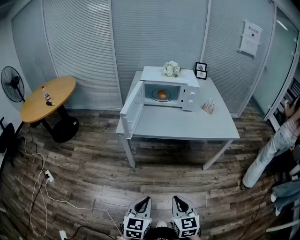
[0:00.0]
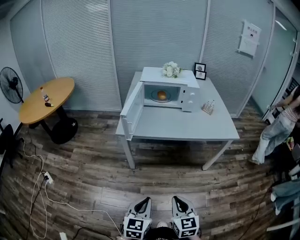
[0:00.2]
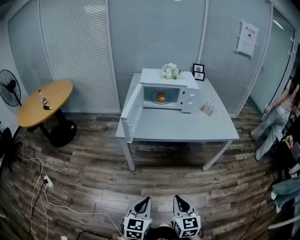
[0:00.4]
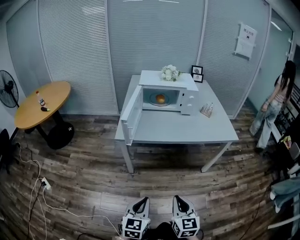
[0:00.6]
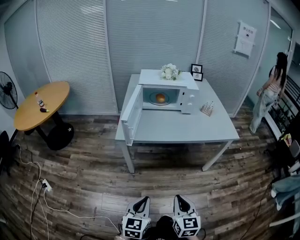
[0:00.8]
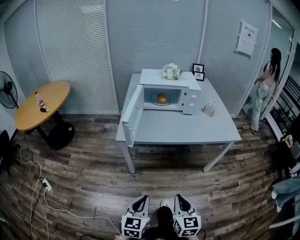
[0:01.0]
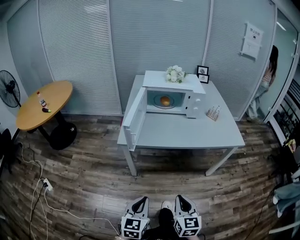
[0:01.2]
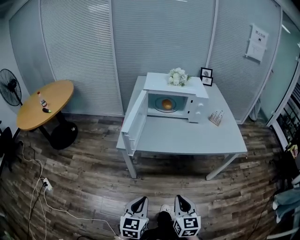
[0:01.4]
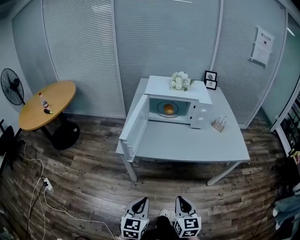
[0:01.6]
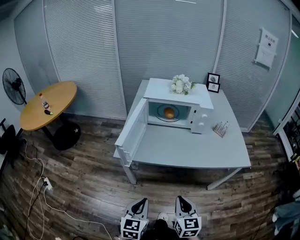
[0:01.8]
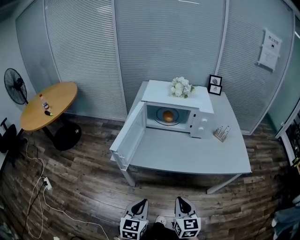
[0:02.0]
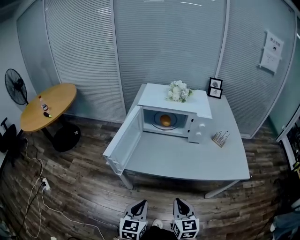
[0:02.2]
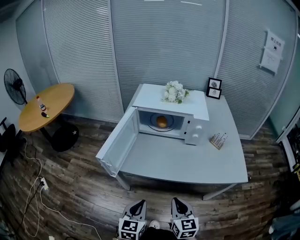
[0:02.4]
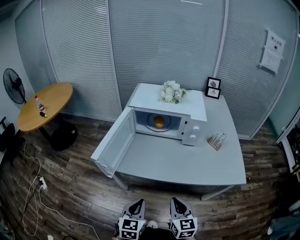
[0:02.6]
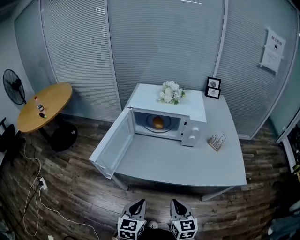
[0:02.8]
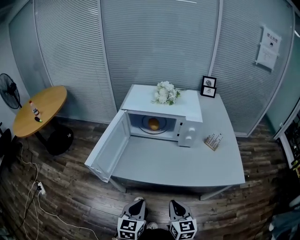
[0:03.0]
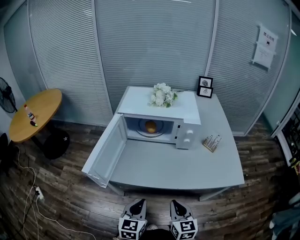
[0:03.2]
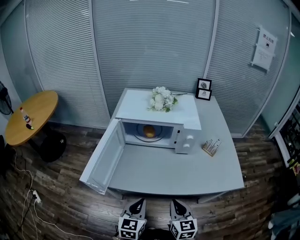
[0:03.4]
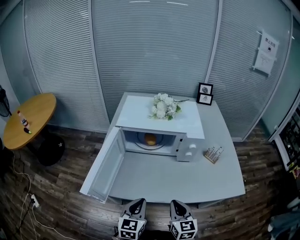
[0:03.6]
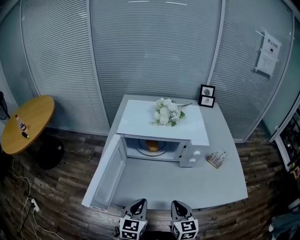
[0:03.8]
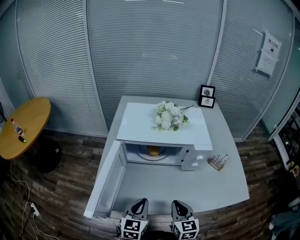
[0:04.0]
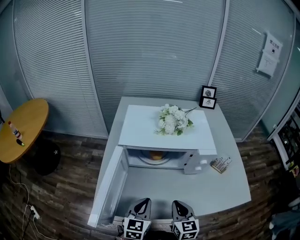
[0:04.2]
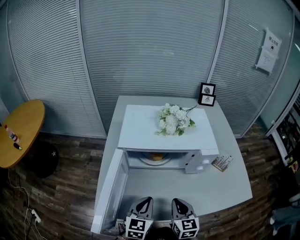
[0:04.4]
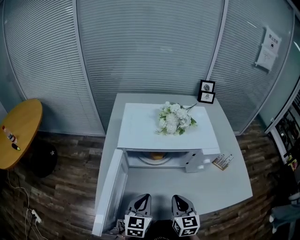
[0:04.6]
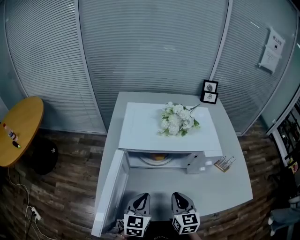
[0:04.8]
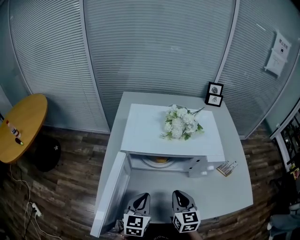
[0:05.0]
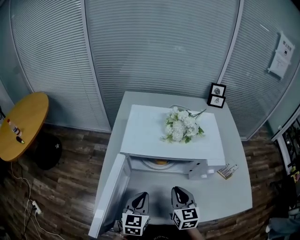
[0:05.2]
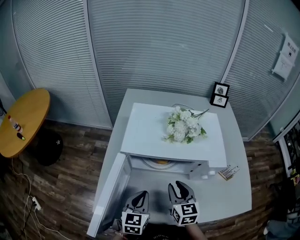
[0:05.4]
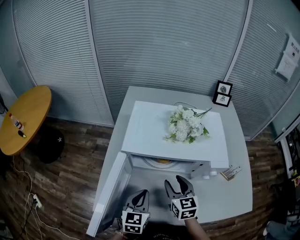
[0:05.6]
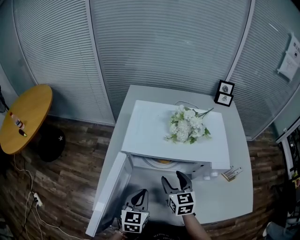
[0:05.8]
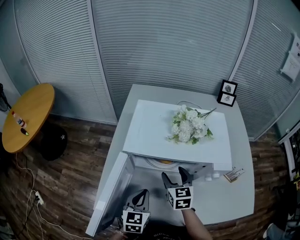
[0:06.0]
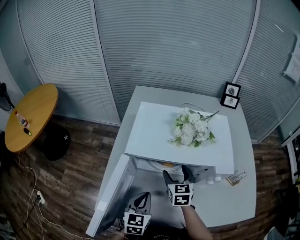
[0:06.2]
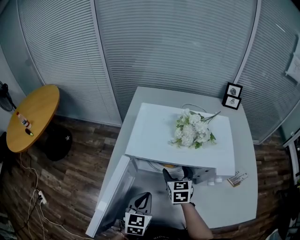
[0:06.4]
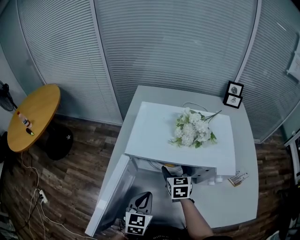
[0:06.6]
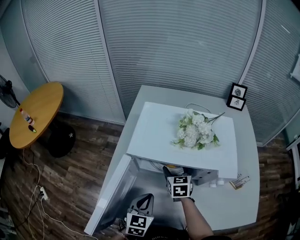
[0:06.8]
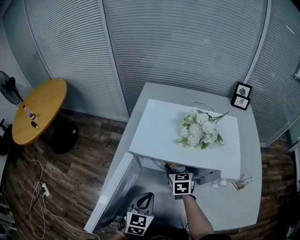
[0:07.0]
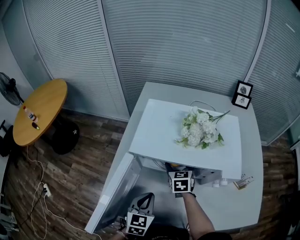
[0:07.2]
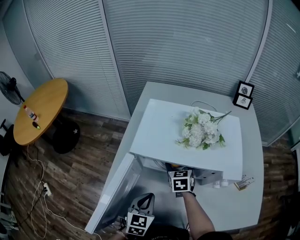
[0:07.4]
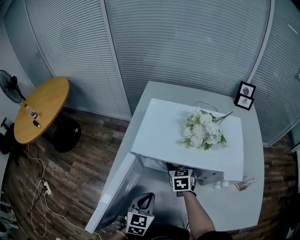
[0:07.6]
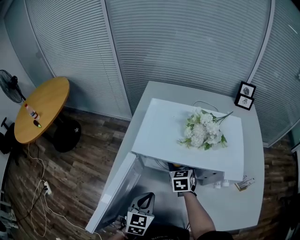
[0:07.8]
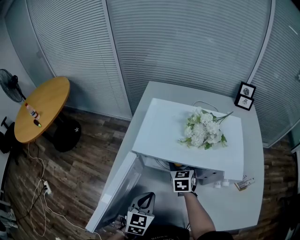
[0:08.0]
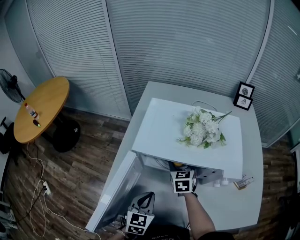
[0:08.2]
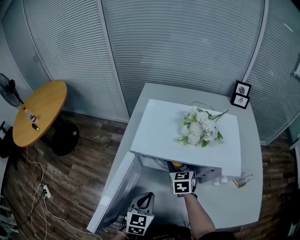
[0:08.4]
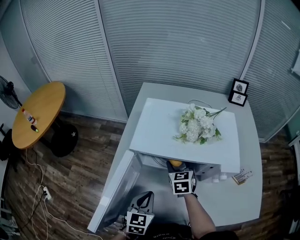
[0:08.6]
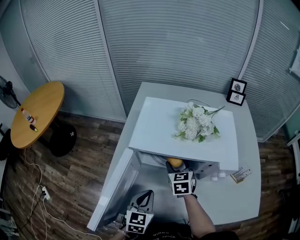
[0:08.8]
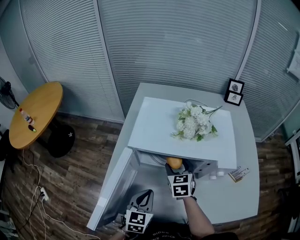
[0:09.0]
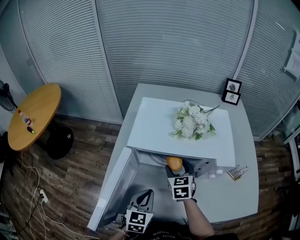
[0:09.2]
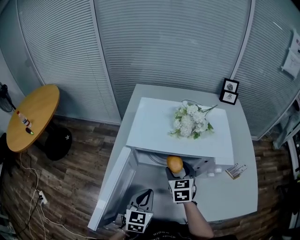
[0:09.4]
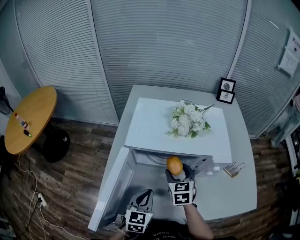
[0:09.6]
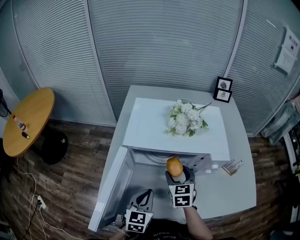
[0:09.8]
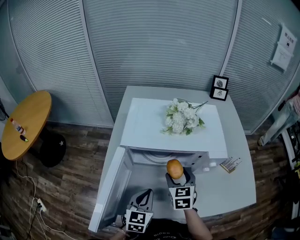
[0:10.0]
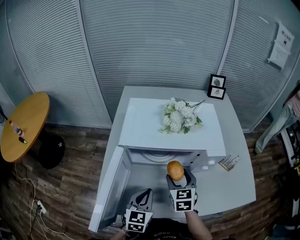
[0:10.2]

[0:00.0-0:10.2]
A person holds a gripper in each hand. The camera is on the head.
0.0 to 1.4 s: The left gripper shifts some 15 cm forward and to the left, while the right gripper goes about 15 cm forward.
1.4 to 3.0 s: The two grippers go roughly 20 cm forward and to the right.
3.0 to 4.4 s: Both grippers travel together forward, roughly 20 cm.
4.4 to 5.8 s: The right gripper goes some 15 cm forward, and opens its fingers. Meanwhile the left gripper travels forward by some 5 cm.
5.8 to 7.2 s: The right gripper goes about 10 cm forward and downward.
7.2 to 8.8 s: The grippers move only a little.
8.8 to 10.2 s: The right gripper moves backward and to the right, roughly 10 cm.

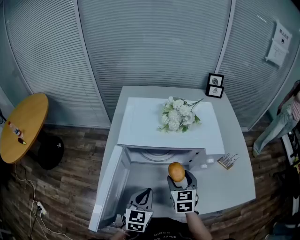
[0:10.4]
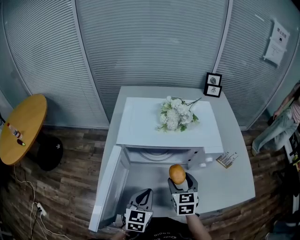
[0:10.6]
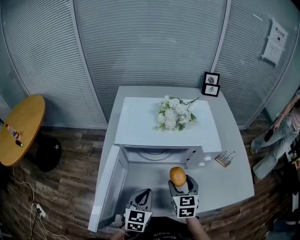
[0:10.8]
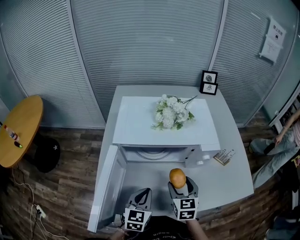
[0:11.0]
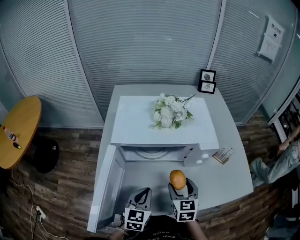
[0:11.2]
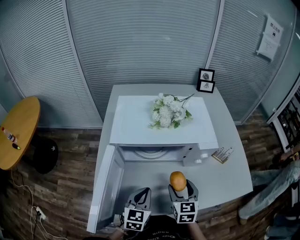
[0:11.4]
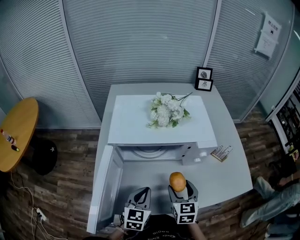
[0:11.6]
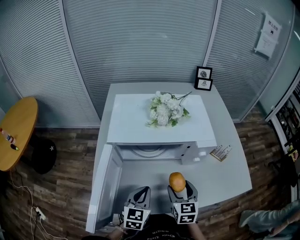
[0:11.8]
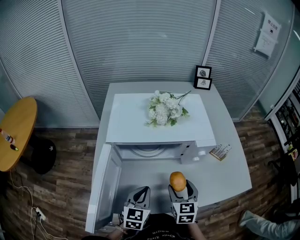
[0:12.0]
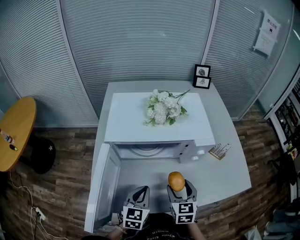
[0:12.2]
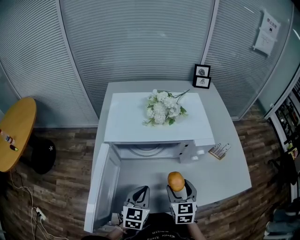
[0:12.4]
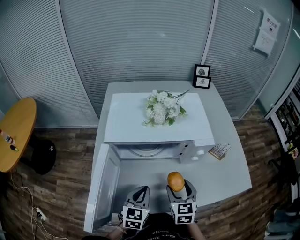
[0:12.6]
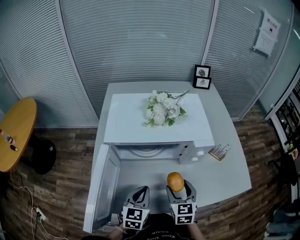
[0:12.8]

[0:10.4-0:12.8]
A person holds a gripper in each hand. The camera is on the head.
10.4 to 11.6 s: The right gripper goes some 5 cm backward.
11.6 to 12.8 s: Both grippers stay about where they are.

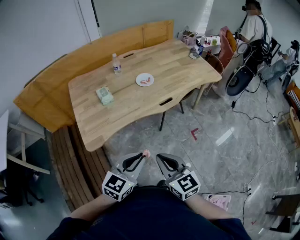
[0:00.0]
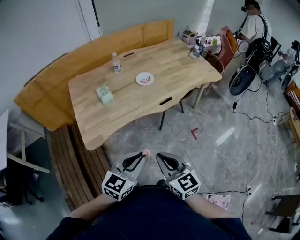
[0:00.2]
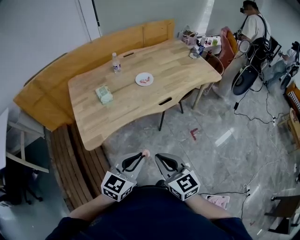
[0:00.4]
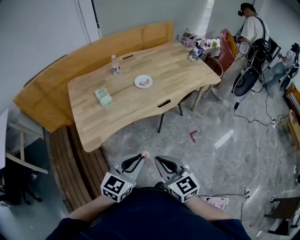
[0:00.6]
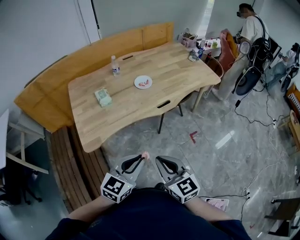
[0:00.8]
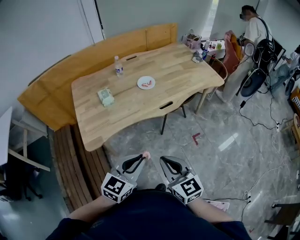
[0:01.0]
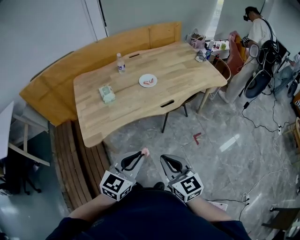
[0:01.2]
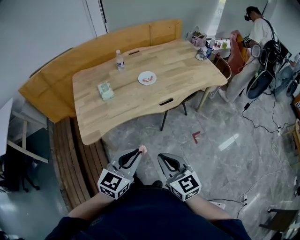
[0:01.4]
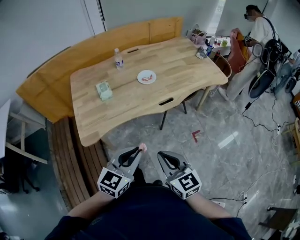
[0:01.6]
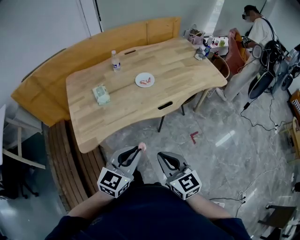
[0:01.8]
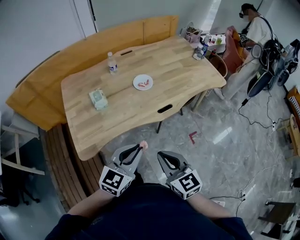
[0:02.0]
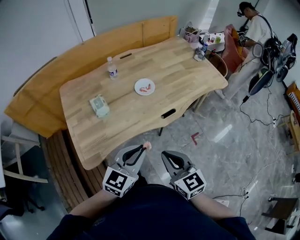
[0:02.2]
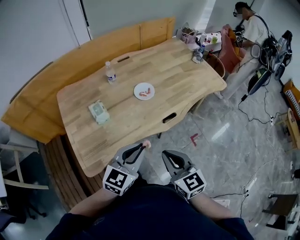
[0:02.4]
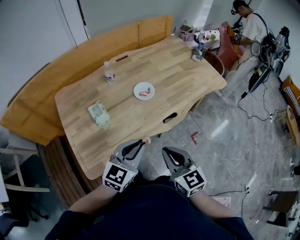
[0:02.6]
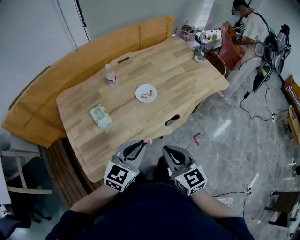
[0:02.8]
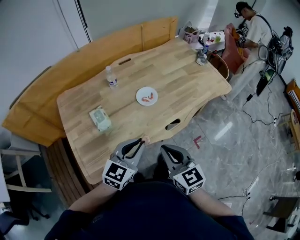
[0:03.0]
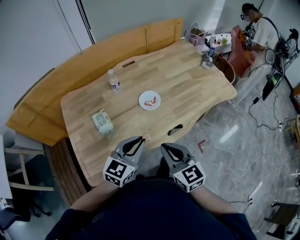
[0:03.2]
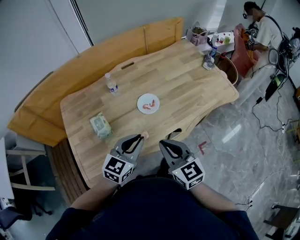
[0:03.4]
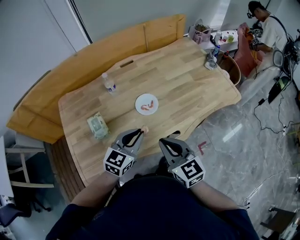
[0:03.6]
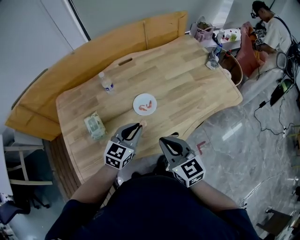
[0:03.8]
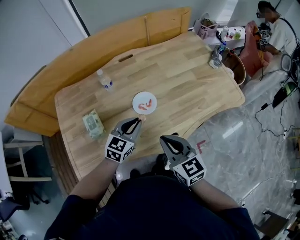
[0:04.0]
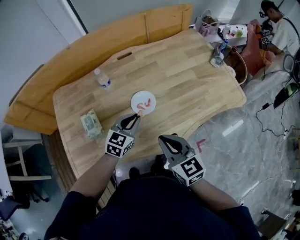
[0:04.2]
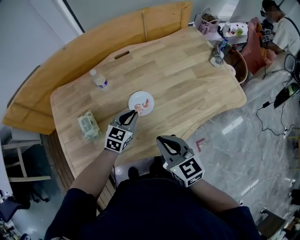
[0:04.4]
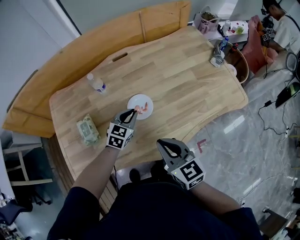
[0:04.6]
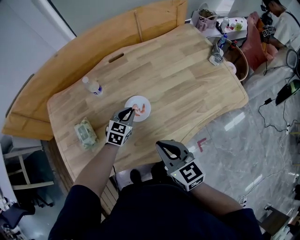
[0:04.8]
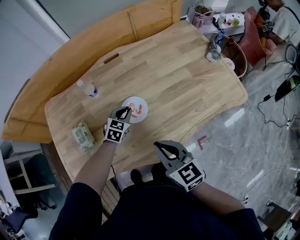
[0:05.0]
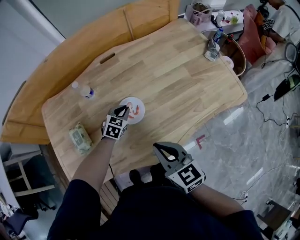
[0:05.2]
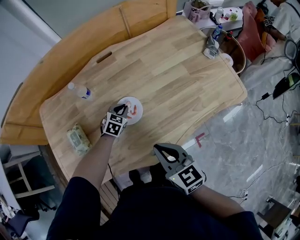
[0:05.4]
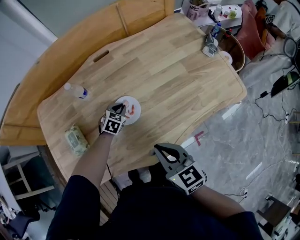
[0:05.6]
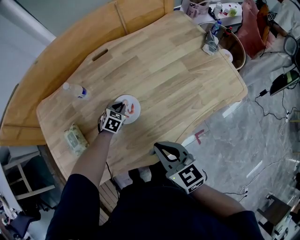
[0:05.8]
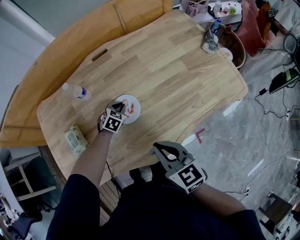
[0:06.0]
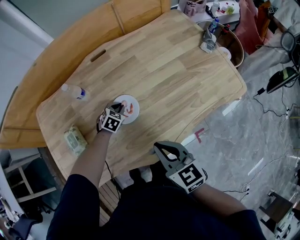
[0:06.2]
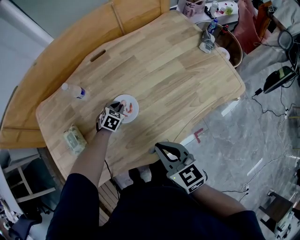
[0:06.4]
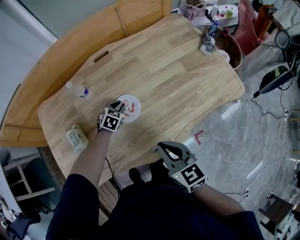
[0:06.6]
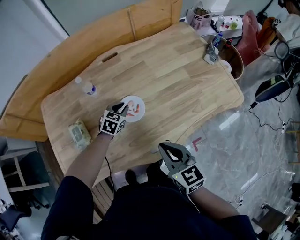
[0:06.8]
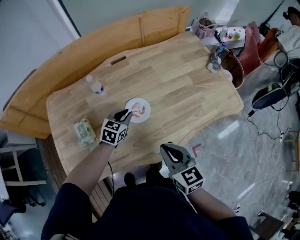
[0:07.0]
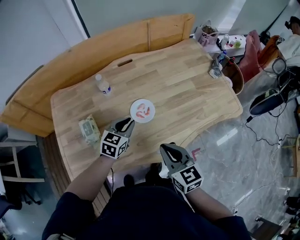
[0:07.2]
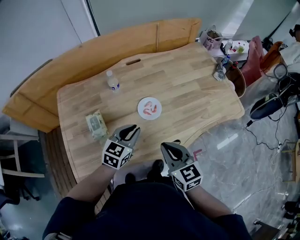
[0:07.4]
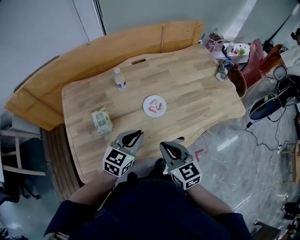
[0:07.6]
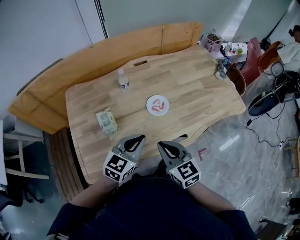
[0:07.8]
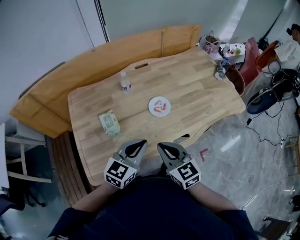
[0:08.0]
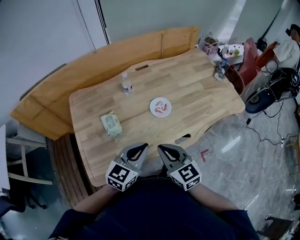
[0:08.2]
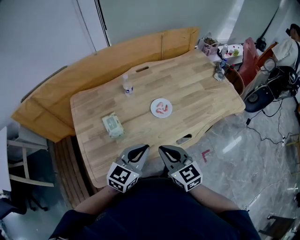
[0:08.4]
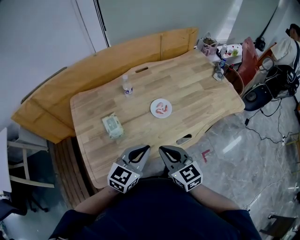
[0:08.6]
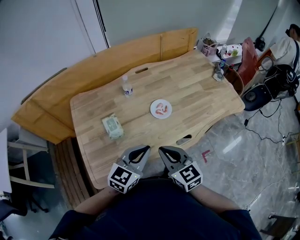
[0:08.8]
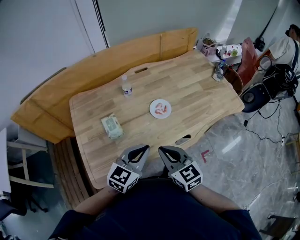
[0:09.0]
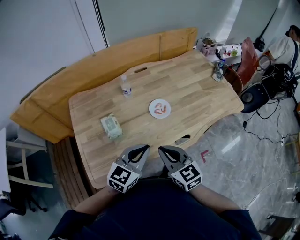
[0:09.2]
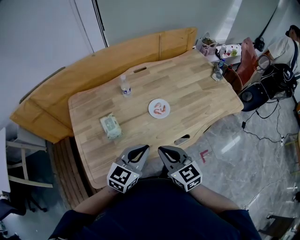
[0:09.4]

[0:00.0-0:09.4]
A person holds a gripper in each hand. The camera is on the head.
0.0 to 1.6 s: The right gripper ends up approximately 5 cm from where it was; the left gripper moves roughly 5 cm.
1.6 to 3.2 s: The grippers both shift forward by some 30 cm.
3.2 to 4.8 s: The left gripper shifts roughly 35 cm forward and downward, and turns by roughly 20 degrees, while the right gripper travels forward and to the right by roughly 20 cm.
4.8 to 6.2 s: The right gripper ends up approximately 5 cm from where it was; the left gripper shifts some 15 cm downward and forward, and changes its angle by approximately 20 degrees.
6.2 to 7.8 s: The left gripper goes some 40 cm upward and backward, and tips its fingers upward by roughly 40 degrees. The right gripper shifts roughly 20 cm to the left, backward and upward.
7.8 to 9.4 s: The left gripper heads backward, covering roughly 5 cm.

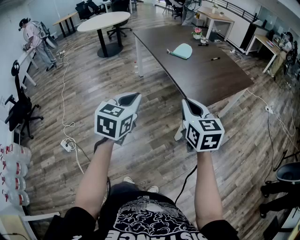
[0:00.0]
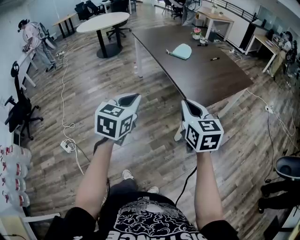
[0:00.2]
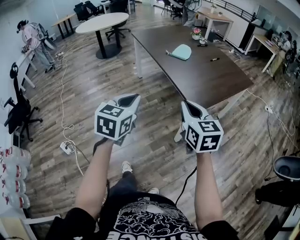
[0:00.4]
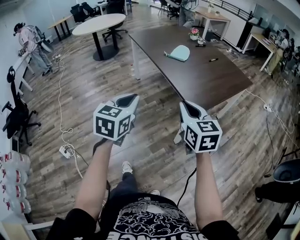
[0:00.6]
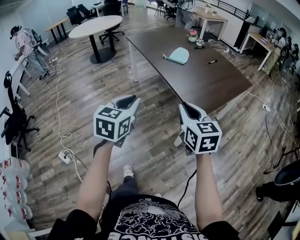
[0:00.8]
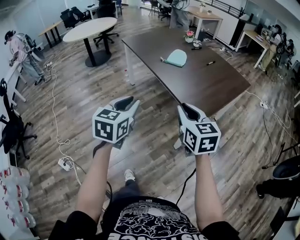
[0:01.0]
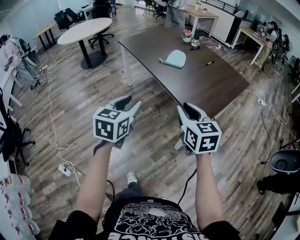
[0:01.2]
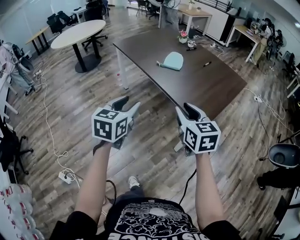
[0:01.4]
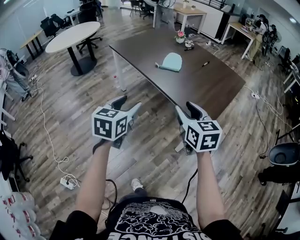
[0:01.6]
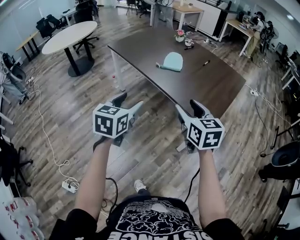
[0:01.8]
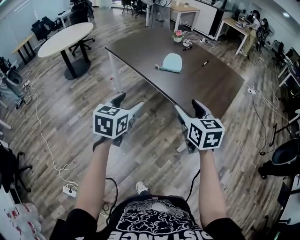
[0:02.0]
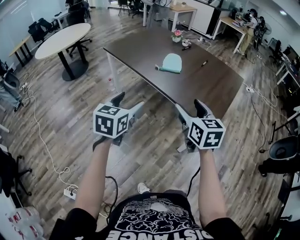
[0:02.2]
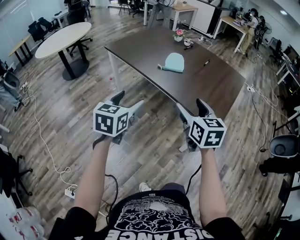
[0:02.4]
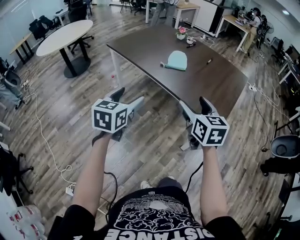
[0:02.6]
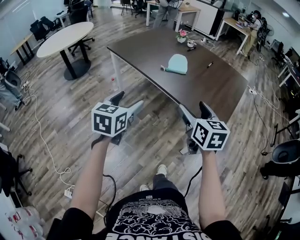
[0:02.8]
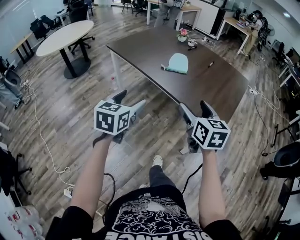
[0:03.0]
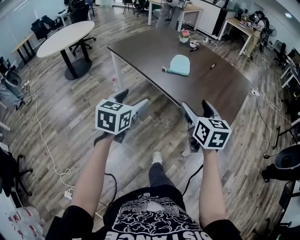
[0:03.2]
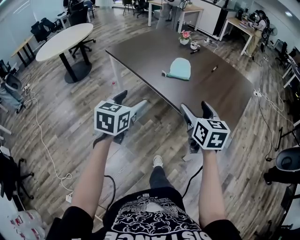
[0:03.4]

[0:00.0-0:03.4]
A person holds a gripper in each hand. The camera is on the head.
0.0 to 1.6 s: Both grippers move forward and to the left, some 20 cm. The right gripper opens its fingers. Meanwhile the left gripper opens its fingers.
1.6 to 3.4 s: The left gripper moves forward and to the left, approximately 20 cm, while the right gripper travels forward by roughly 15 cm, and opens its fingers.
